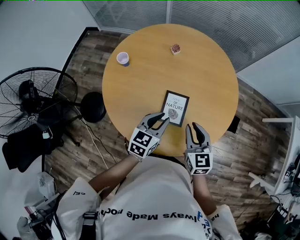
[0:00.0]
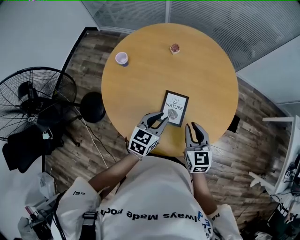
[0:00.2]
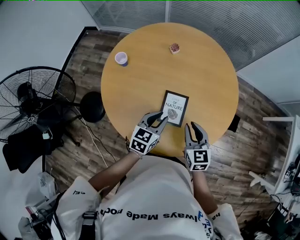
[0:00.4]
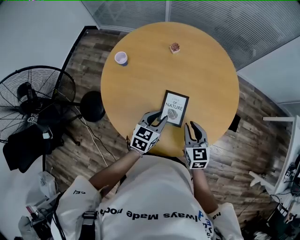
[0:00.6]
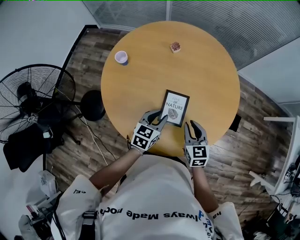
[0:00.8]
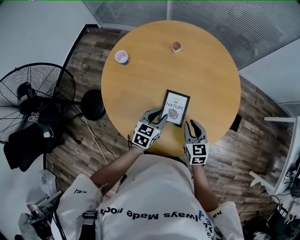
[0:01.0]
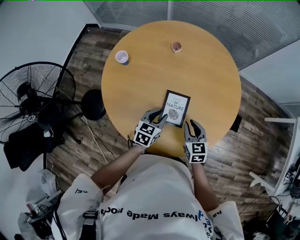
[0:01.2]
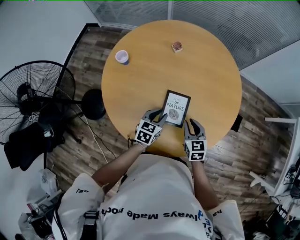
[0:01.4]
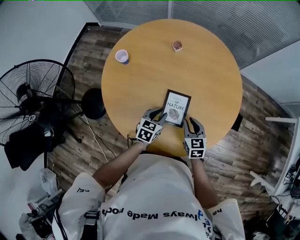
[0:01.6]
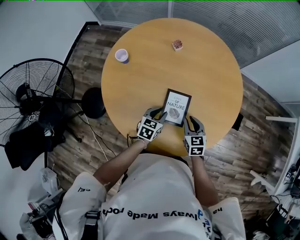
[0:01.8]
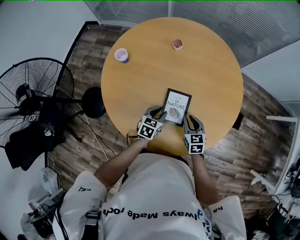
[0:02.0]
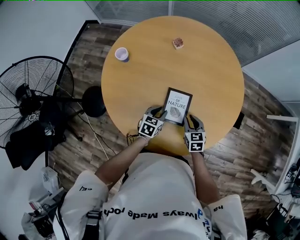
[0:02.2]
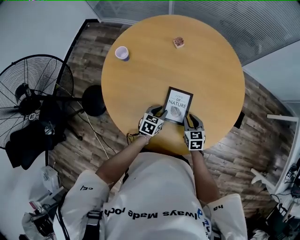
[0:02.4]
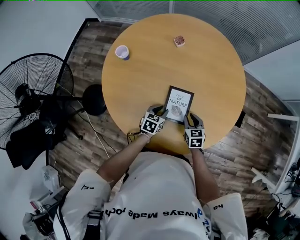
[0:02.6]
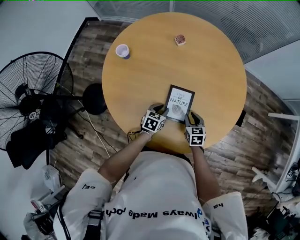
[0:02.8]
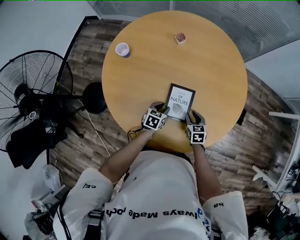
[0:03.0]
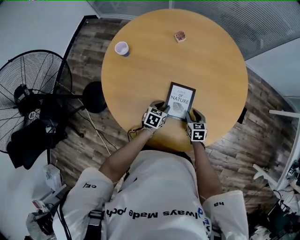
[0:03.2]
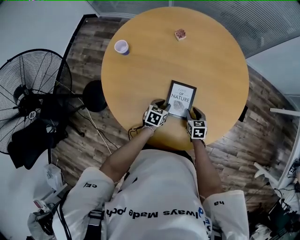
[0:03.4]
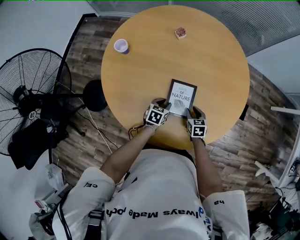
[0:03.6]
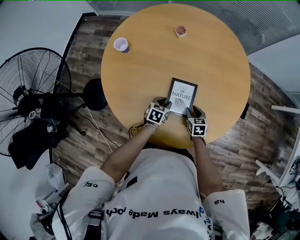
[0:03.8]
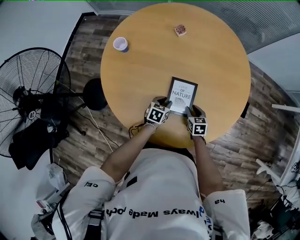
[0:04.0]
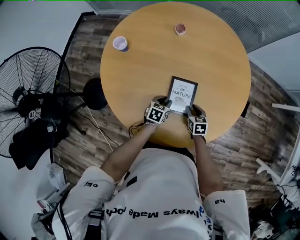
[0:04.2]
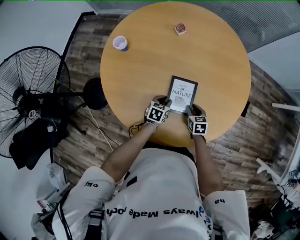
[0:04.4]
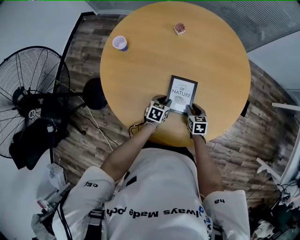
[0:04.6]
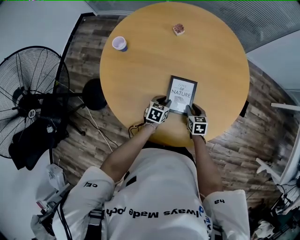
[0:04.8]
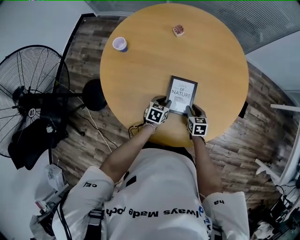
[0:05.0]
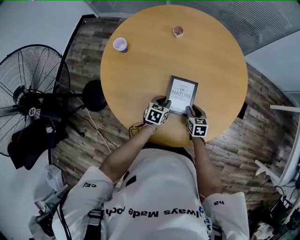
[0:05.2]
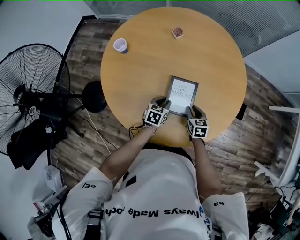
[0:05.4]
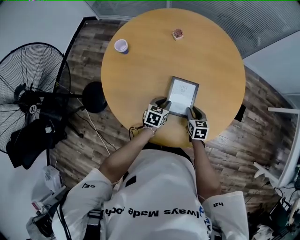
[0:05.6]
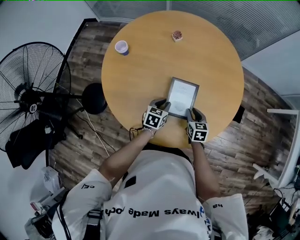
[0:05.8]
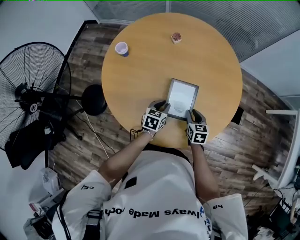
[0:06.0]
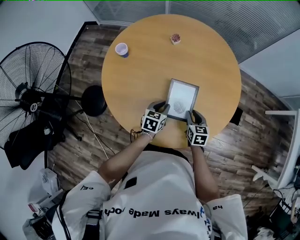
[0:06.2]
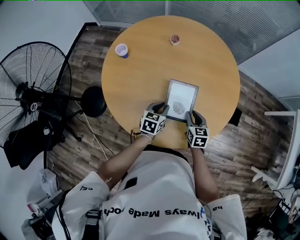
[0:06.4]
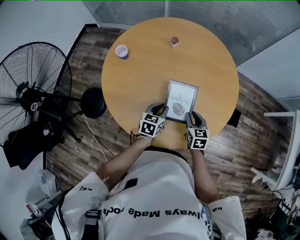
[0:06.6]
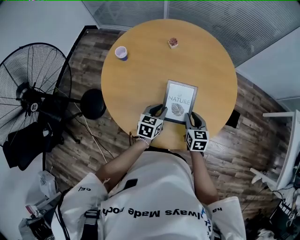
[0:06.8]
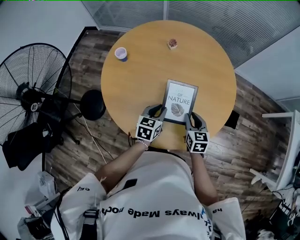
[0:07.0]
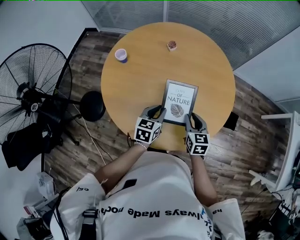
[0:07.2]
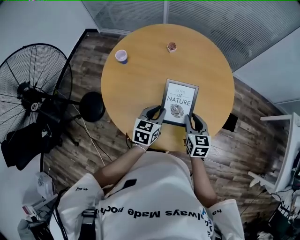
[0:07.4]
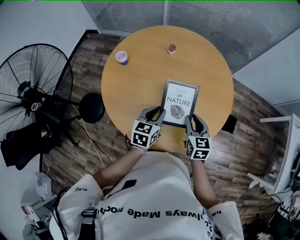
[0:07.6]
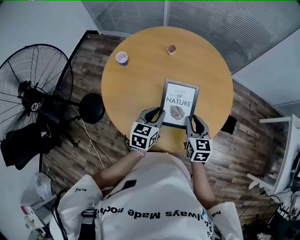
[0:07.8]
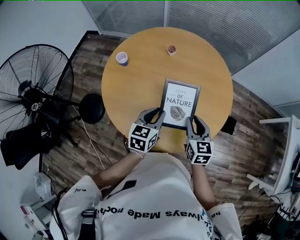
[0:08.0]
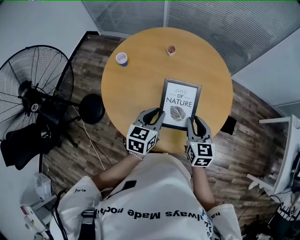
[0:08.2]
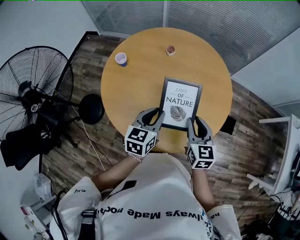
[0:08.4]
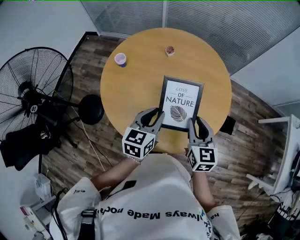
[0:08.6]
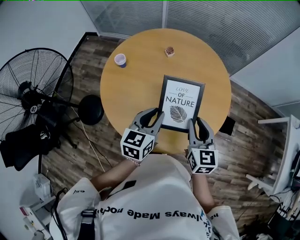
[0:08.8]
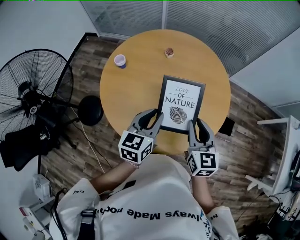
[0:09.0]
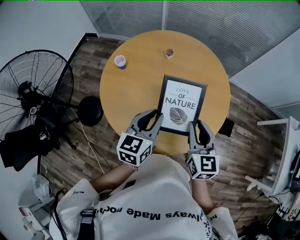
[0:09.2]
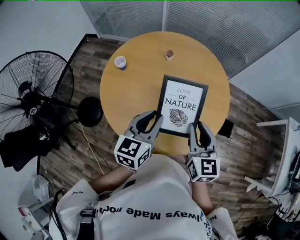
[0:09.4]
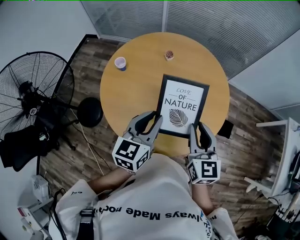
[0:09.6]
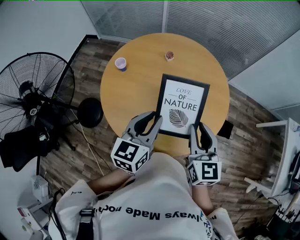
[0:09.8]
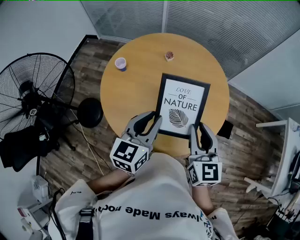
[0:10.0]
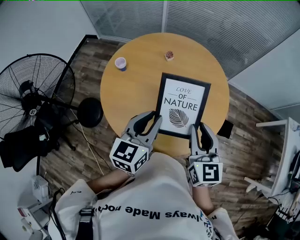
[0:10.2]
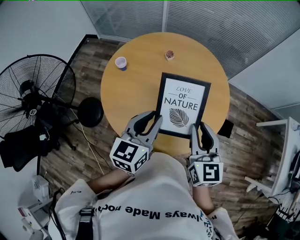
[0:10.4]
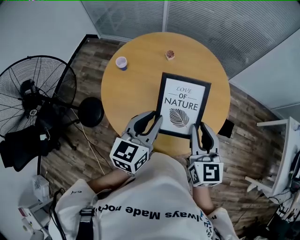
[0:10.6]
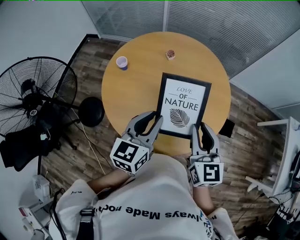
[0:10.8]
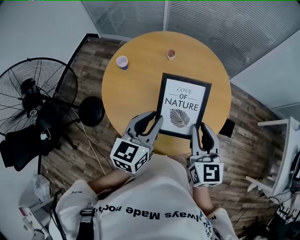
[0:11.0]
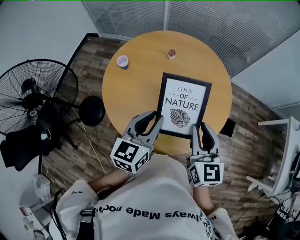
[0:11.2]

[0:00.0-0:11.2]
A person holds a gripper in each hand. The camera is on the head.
0:00.0 to 0:01.6: Both grippers travel together downward, roughly 15 cm.
0:01.6 to 0:03.2: The grippers both shift downward by roughly 10 cm.
0:03.2 to 0:04.8: The grippers stay close to where they were, moving slightly.
0:04.8 to 0:06.4: The grippers both shift upward by about 10 cm.
0:06.4 to 0:08.0: The two grippers go some 15 cm upward.
0:08.0 to 0:09.6: The two grippers go approximately 15 cm upward.
0:09.6 to 0:11.2: The grippers move only a little.

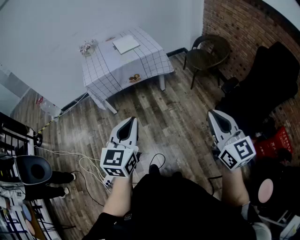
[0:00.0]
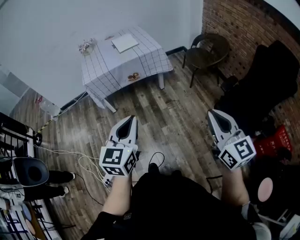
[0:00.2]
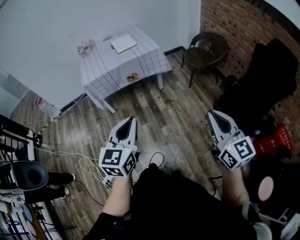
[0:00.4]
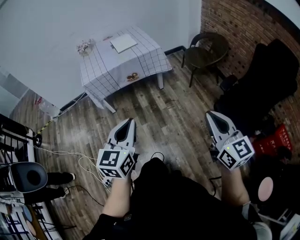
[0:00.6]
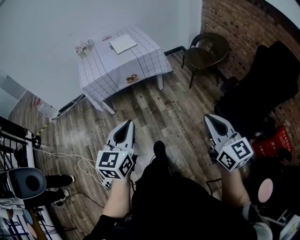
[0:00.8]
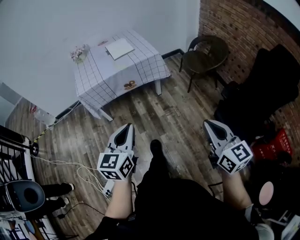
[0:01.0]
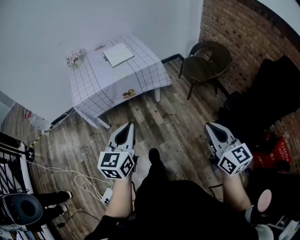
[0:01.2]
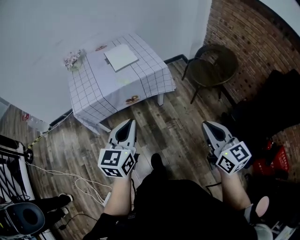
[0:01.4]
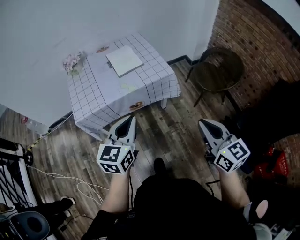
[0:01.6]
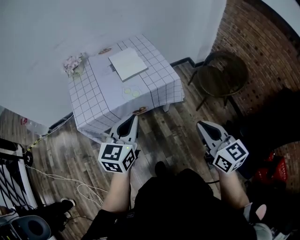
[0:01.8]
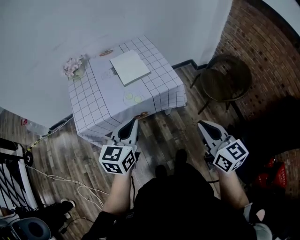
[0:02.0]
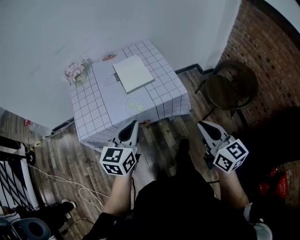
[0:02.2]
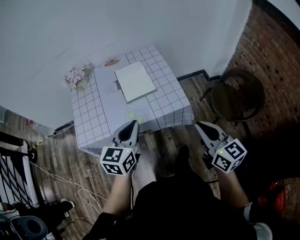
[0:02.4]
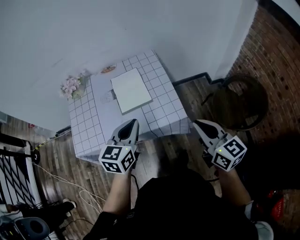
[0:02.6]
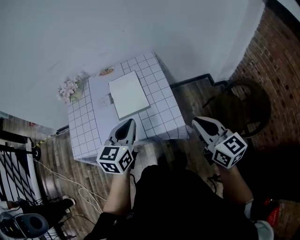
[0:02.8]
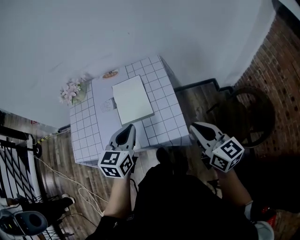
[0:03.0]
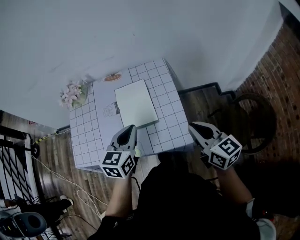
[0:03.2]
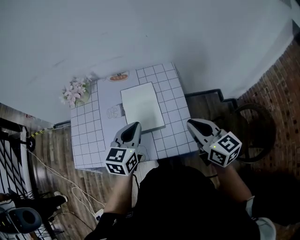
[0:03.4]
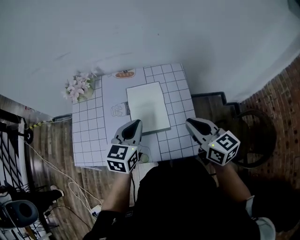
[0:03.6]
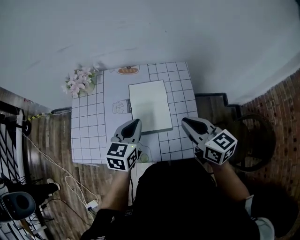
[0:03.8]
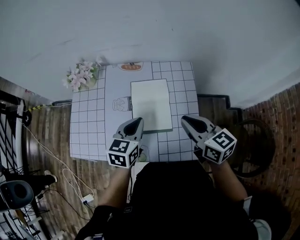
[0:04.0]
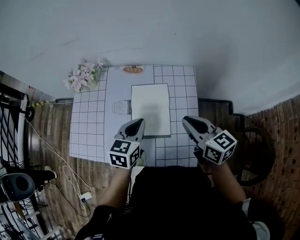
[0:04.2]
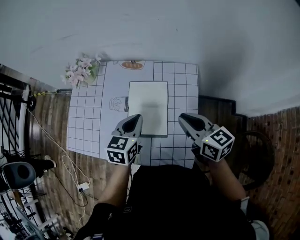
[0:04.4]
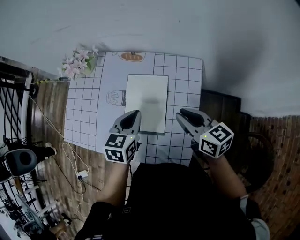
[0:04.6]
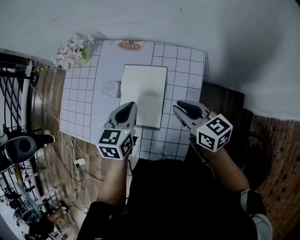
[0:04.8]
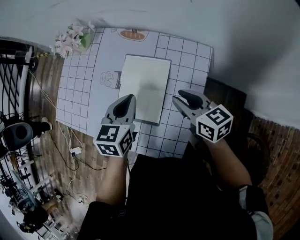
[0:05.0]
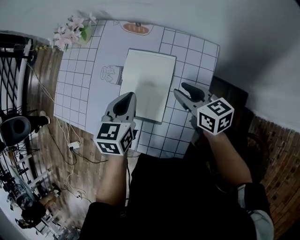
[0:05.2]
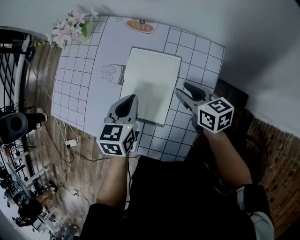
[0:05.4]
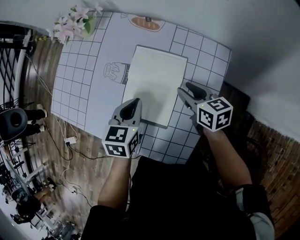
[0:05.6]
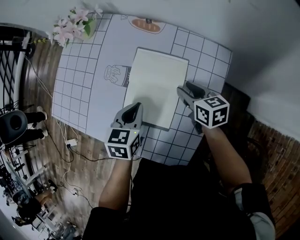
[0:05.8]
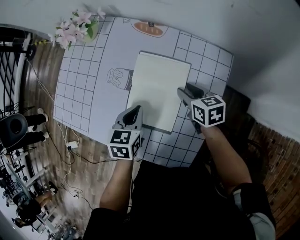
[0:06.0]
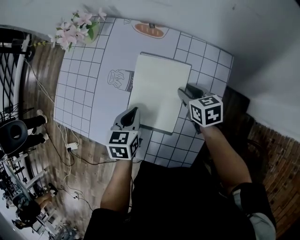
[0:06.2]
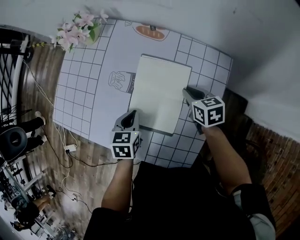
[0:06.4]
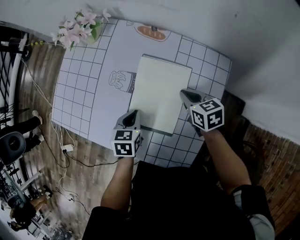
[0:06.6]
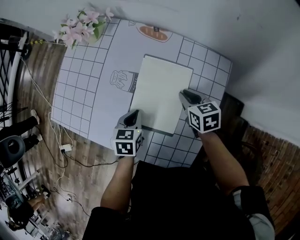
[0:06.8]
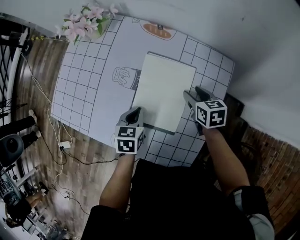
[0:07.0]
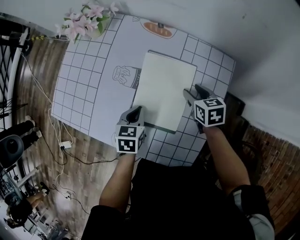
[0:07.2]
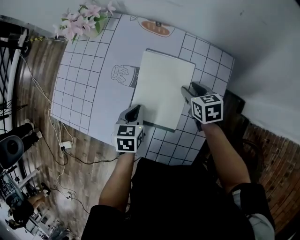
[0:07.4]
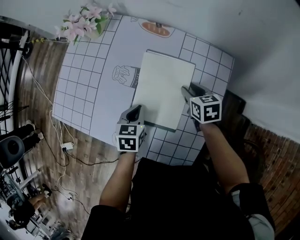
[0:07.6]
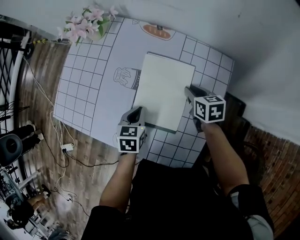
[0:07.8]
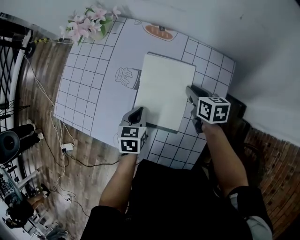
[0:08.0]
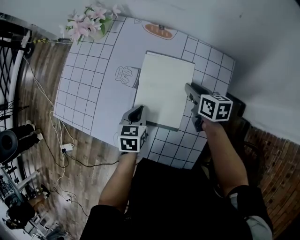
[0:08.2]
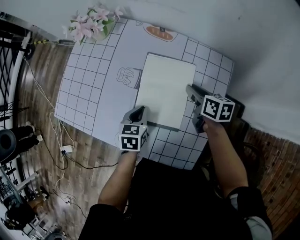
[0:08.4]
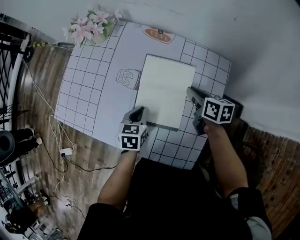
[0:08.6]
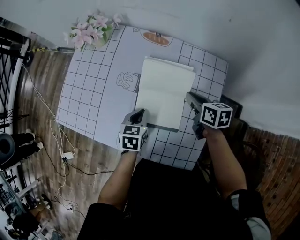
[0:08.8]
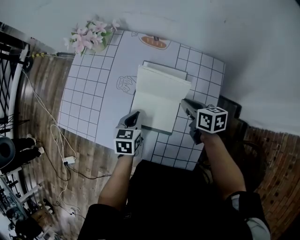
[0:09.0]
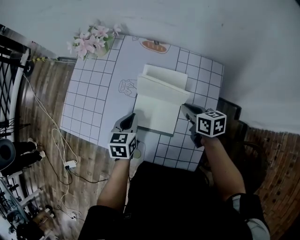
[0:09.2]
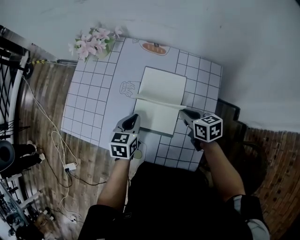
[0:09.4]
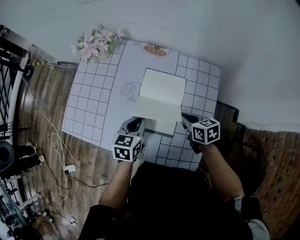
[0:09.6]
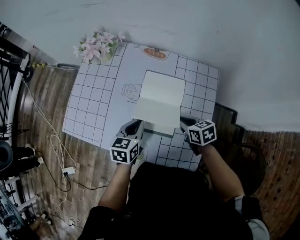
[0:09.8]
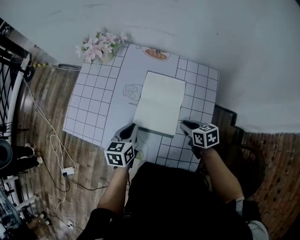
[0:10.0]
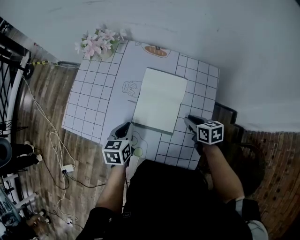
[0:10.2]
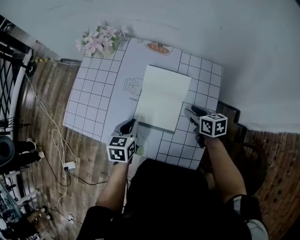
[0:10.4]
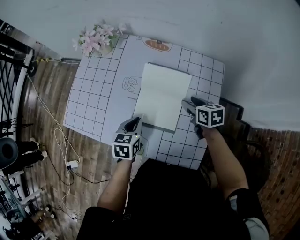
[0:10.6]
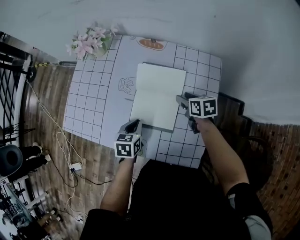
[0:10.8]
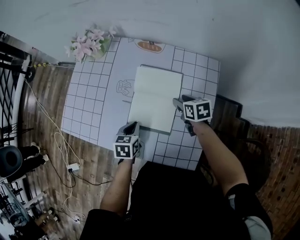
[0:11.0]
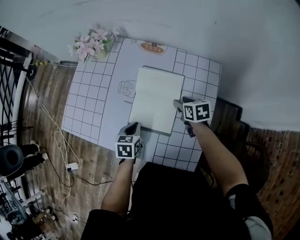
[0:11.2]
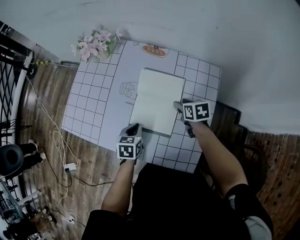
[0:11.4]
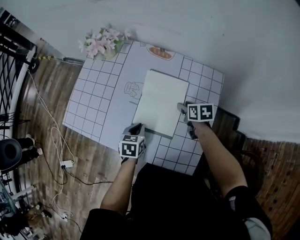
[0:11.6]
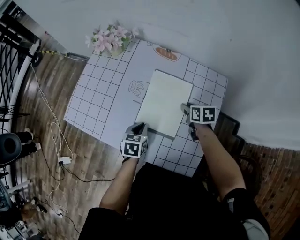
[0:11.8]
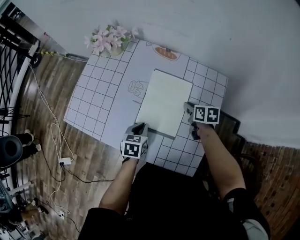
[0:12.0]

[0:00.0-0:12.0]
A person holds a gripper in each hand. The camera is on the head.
0:00.0 to 0:01.6: Both grippers travel together forward, some 40 cm.
0:01.6 to 0:03.0: The two grippers travel together, forward, some 40 cm. The right gripper changes its angle by approximately 20 degrees.
0:03.0 to 0:04.4: The grippers both shift forward by approximately 25 cm. The right gripper swivels approximately 20 degrees.
0:04.4 to 0:06.0: The right gripper goes approximately 25 cm downward and forward, rotates about 30 degrees, and opens up, while the left gripper is displaced downward by approximately 15 cm, and changes its angle by roughly 20 degrees.
0:06.0 to 0:07.6: The left gripper moves some 5 cm. Meanwhile the right gripper closes and opens again.
0:07.6 to 0:09.0: The right gripper goes approximately 5 cm upward, changes its angle by about 20 degrees, and closes up.
0:09.0 to 0:10.4: The right gripper opens up, while the left gripper moves roughly 5 cm.
0:10.4 to 0:12.0: The left gripper heads downward, covering some 5 cm. The right gripper goes some 5 cm forward, and closes up.

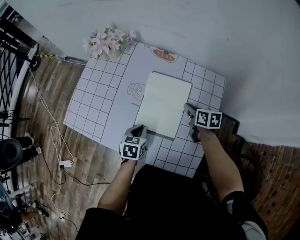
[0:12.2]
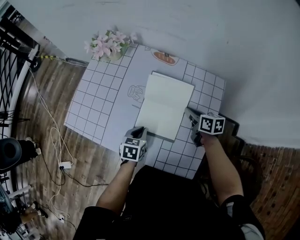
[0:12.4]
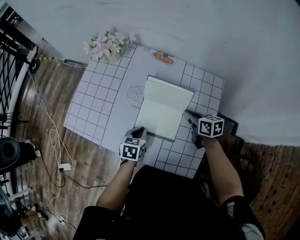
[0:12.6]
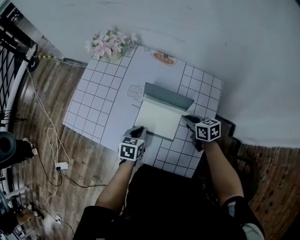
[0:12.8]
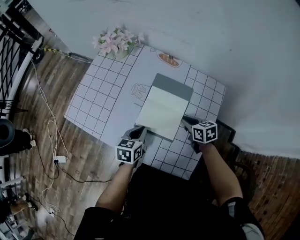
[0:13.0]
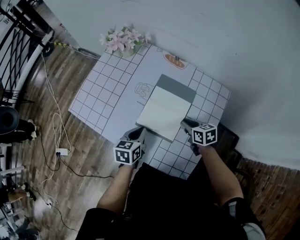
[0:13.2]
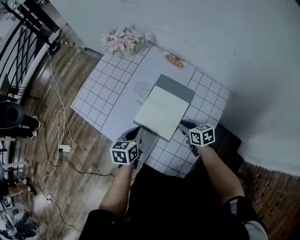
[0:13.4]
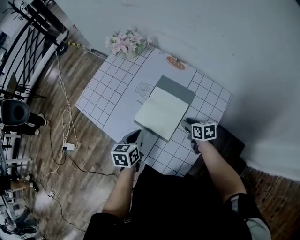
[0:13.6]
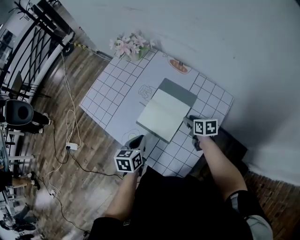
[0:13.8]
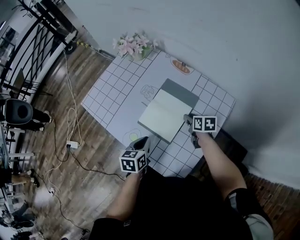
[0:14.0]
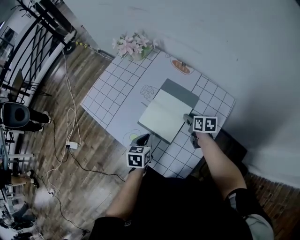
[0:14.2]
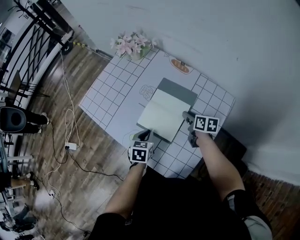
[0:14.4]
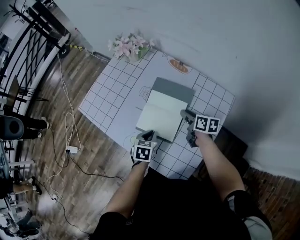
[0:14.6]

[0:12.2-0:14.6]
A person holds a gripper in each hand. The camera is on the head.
0:12.2 to 0:13.4: The right gripper moves backward, roughly 5 cm, and swivels approximately 30 degrees, while the left gripper moves upward, about 5 cm, and swivels some 20 degrees.
0:13.4 to 0:14.6: The left gripper is displaced downward by some 5 cm. The right gripper travels forward by about 5 cm, and changes its angle by about 20 degrees.
